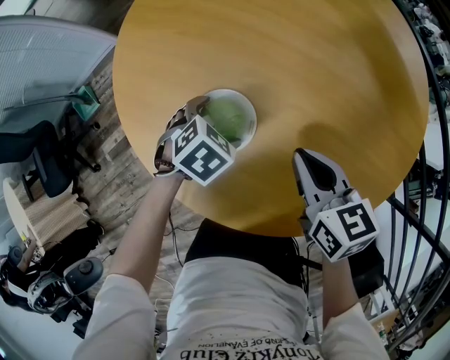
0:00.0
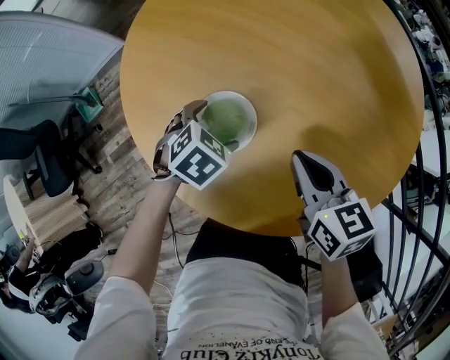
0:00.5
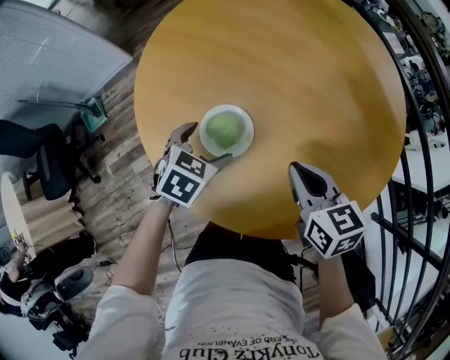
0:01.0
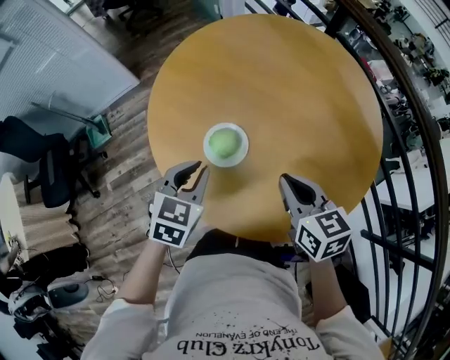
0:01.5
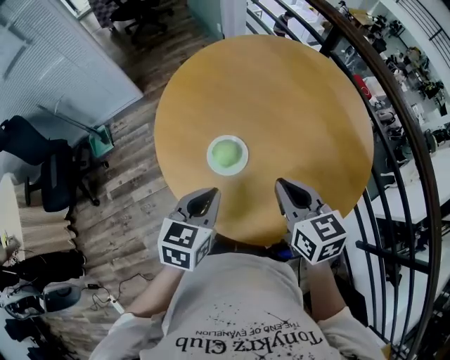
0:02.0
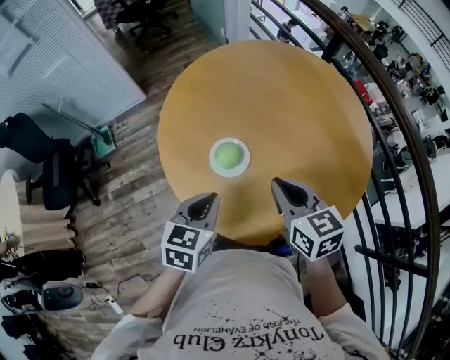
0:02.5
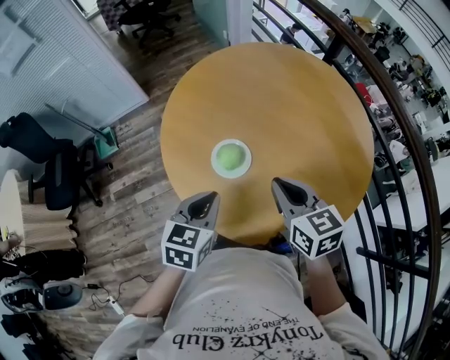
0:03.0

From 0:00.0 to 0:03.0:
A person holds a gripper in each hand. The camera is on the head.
From 0:00.0 to 0:01.5: The right gripper moves upward and backward, some 15 cm, while the left gripper goes roughly 25 cm upward and backward, tips its fingers upward by approximately 30 degrees, and closes up.
From 0:01.5 to 0:03.0: The right gripper goes some 5 cm upward. The left gripper shifts some 10 cm backward.

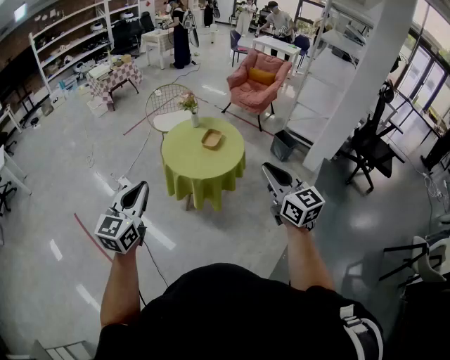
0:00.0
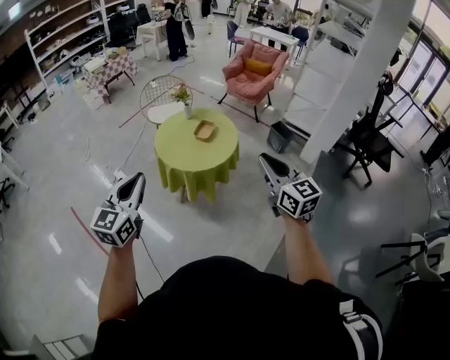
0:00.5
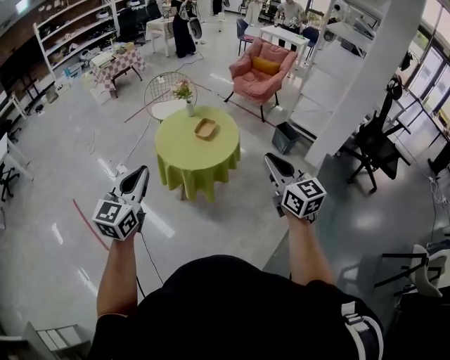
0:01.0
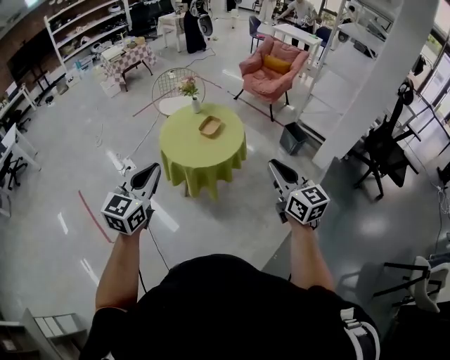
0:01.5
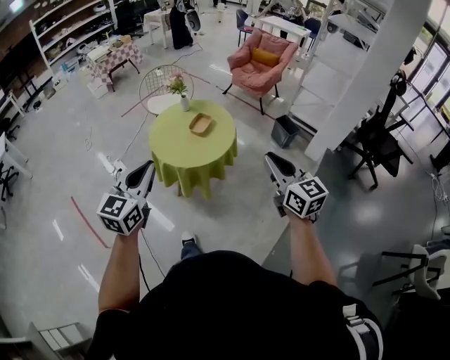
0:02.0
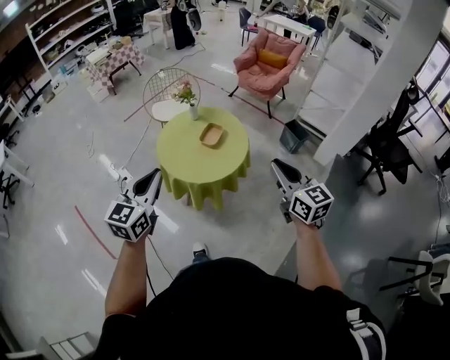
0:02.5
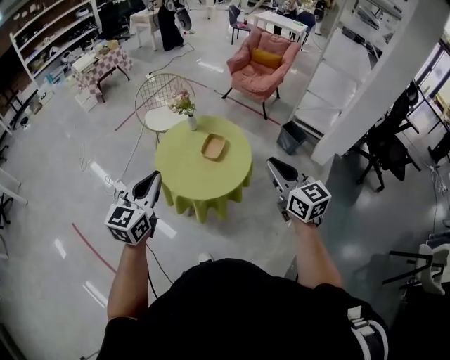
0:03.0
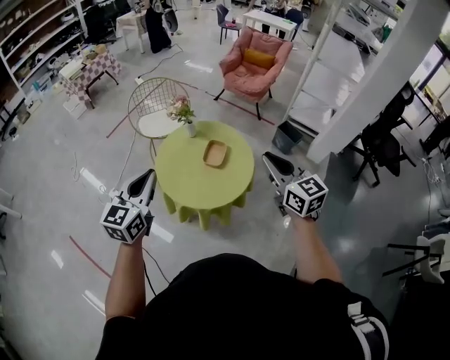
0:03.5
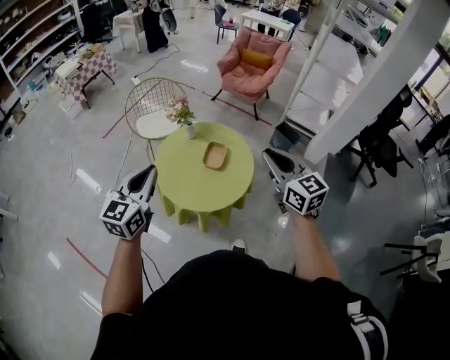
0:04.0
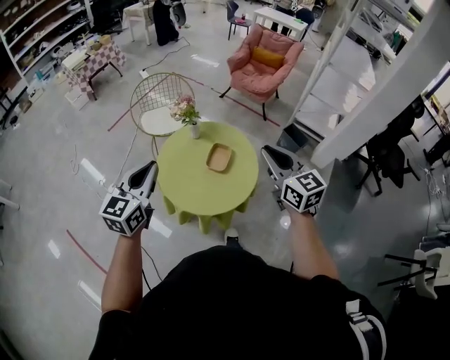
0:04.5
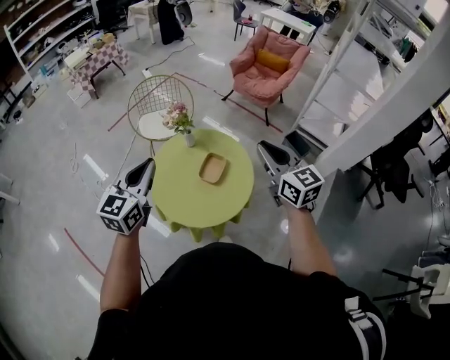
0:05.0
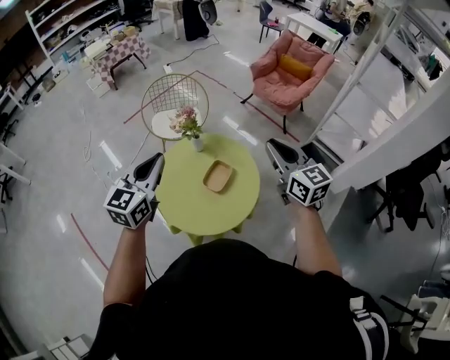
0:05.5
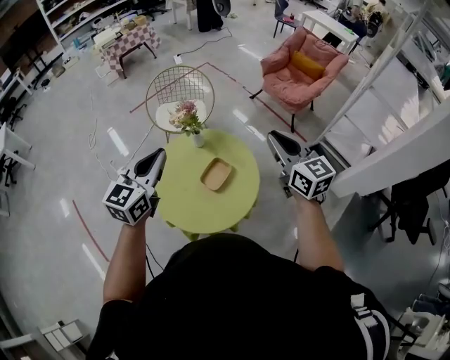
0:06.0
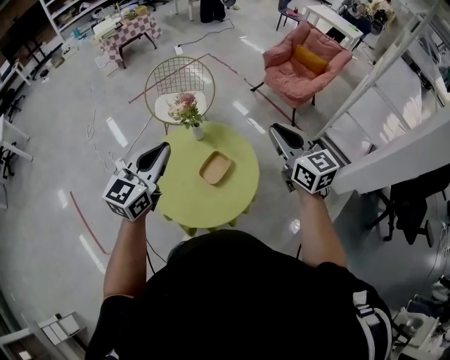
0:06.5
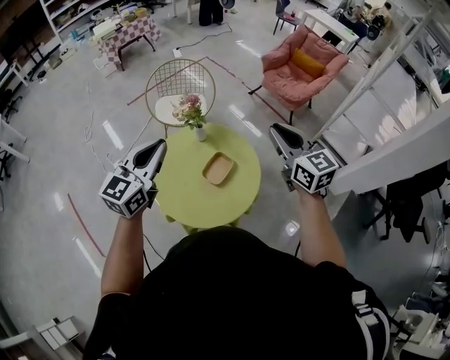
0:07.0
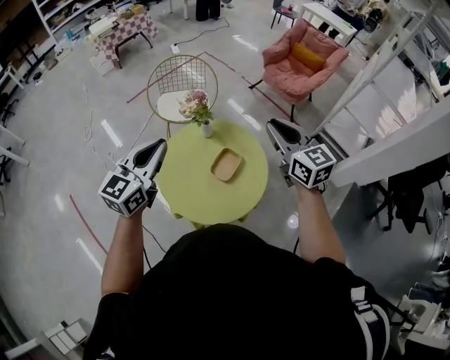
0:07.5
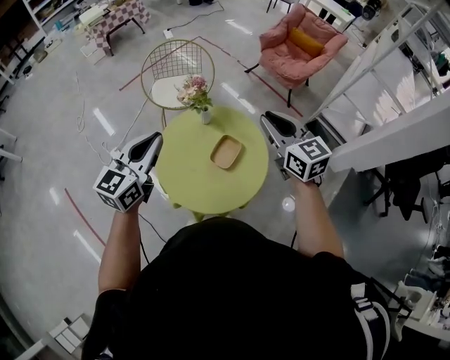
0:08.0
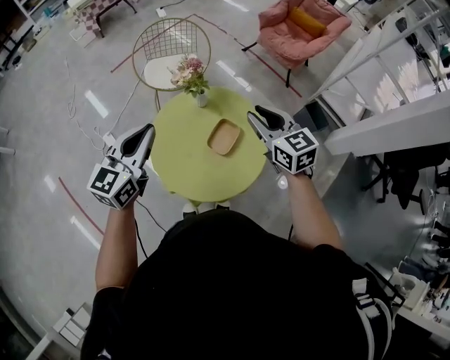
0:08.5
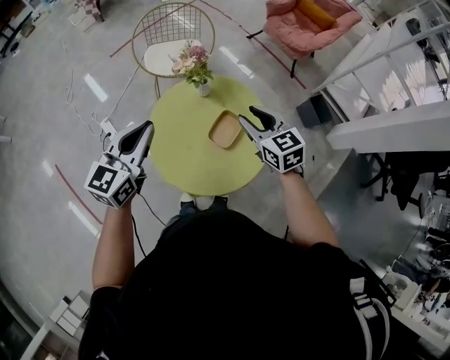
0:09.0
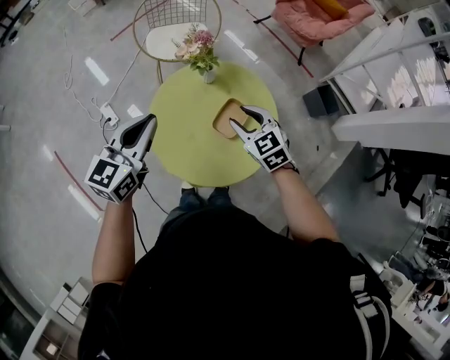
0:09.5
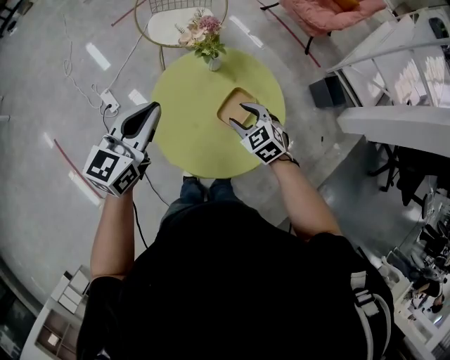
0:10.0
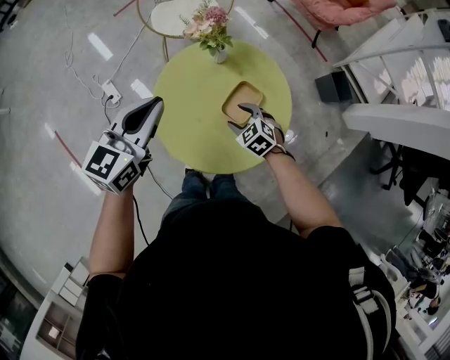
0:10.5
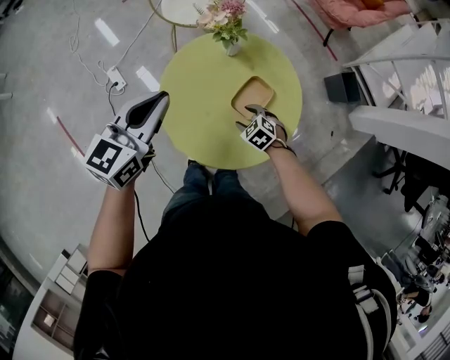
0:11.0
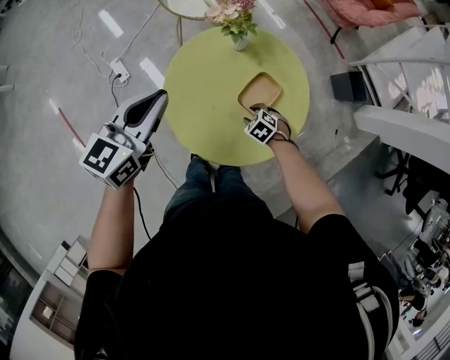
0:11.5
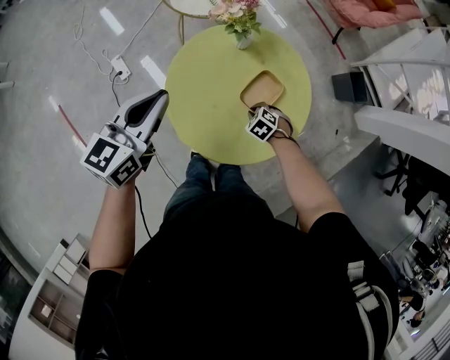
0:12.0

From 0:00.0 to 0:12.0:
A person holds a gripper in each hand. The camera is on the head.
From 0:00.0 to 0:02.0: The two grippers go about 15 cm to the right and forward.
From 0:02.0 to 0:04.0: Both grippers move forward and to the left, some 35 cm.
From 0:04.0 to 0:06.0: The grippers both shift forward and to the right by roughly 25 cm.
From 0:06.0 to 0:08.0: The grippers both shift to the left by about 10 cm.
From 0:08.0 to 0:10.0: The left gripper heads downward and forward, covering about 10 cm. Meanwhile the right gripper moves downward, approximately 30 cm, tilts its fingers approximately 30 degrees downward, and opens its fingers.
From 0:10.0 to 0:12.0: The right gripper goes about 20 cm downward, swivels approximately 30 degrees, and closes up. Meanwhile the left gripper changes place by some 5 cm.

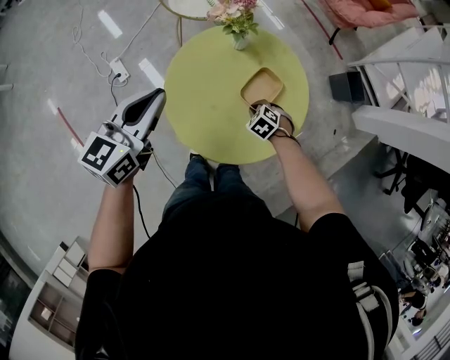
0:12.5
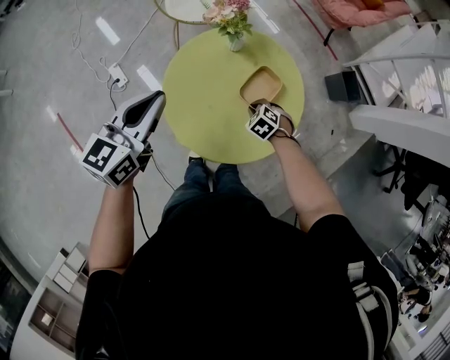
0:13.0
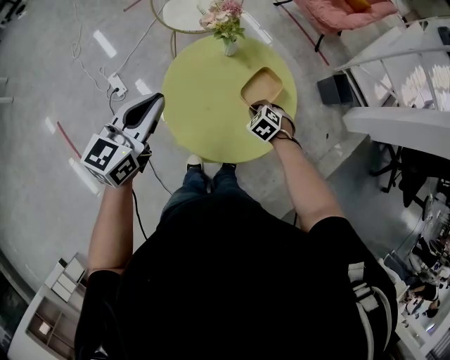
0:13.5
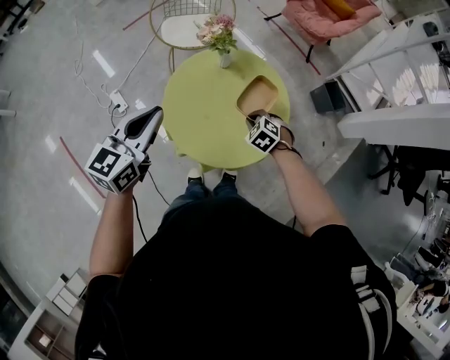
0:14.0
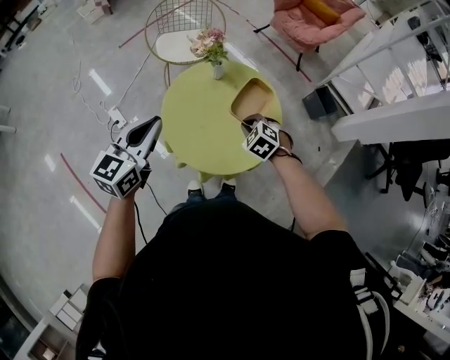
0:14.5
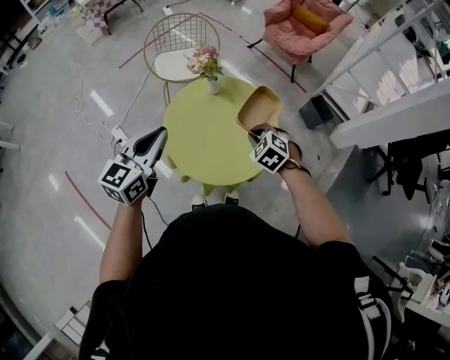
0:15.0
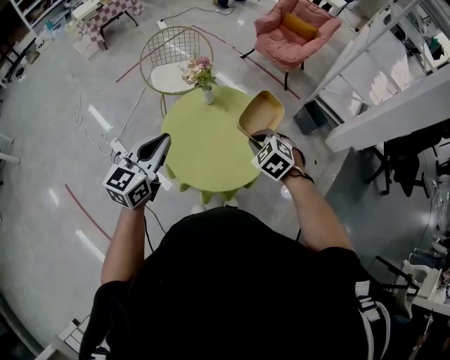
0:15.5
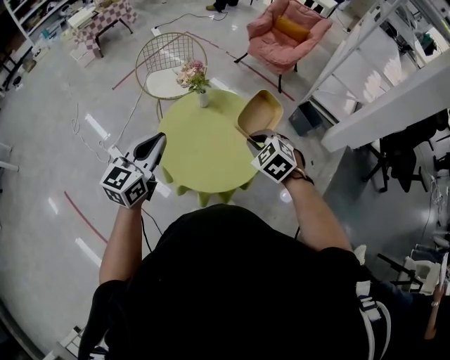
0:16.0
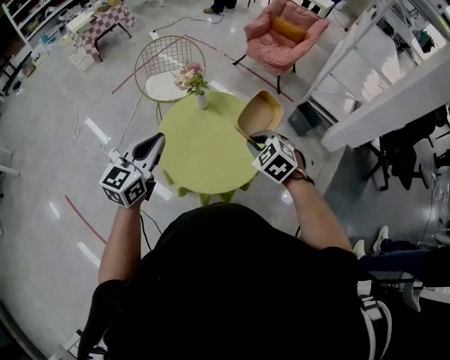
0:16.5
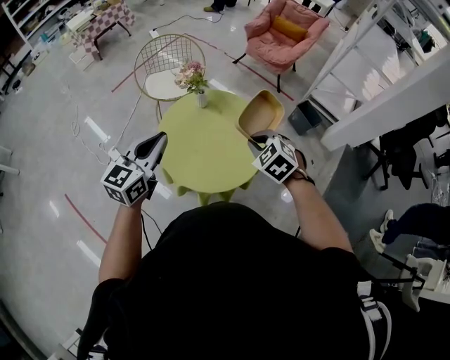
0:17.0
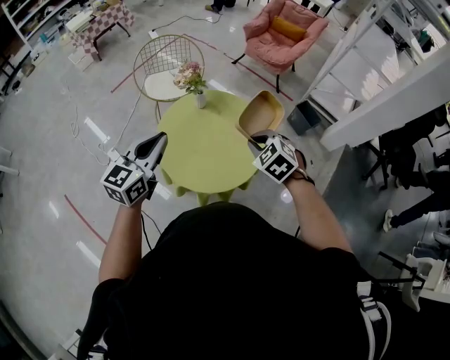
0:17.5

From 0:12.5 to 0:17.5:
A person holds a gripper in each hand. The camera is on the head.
From 0:12.5 to 0:15.0: The right gripper shifts about 25 cm upward; the left gripper shifts by about 15 cm.
From 0:15.0 to 0:17.5: The right gripper moves upward, roughly 10 cm.

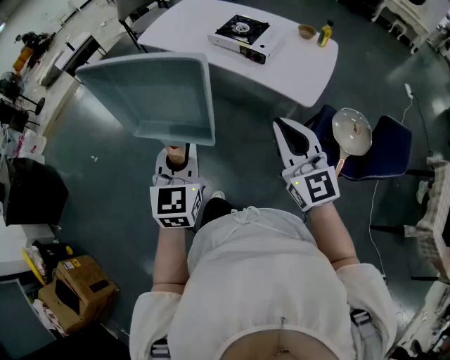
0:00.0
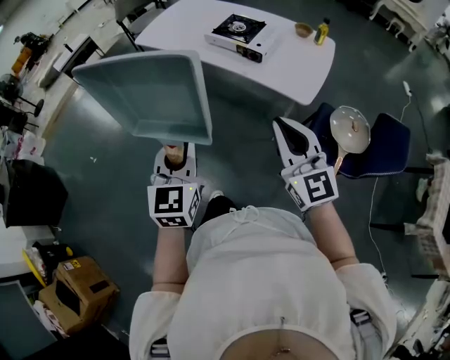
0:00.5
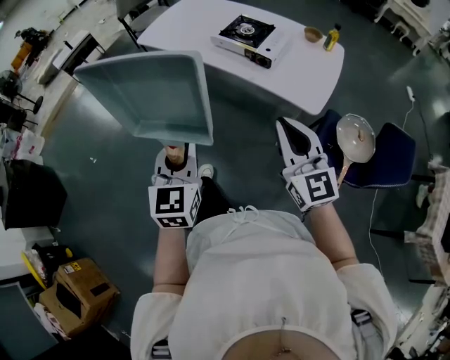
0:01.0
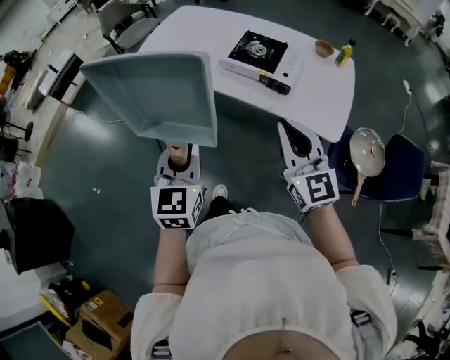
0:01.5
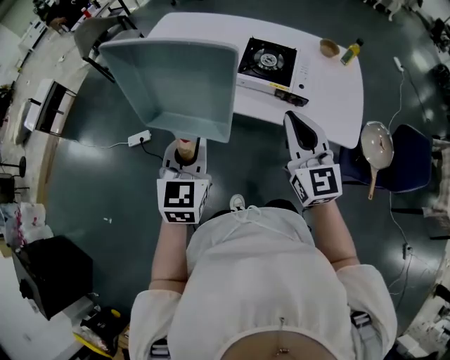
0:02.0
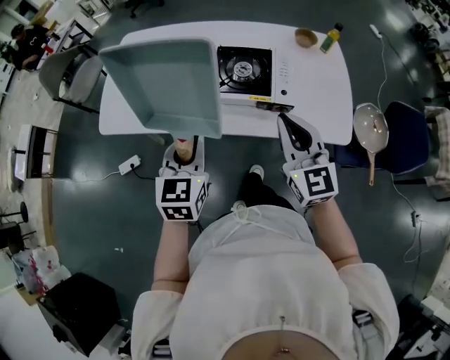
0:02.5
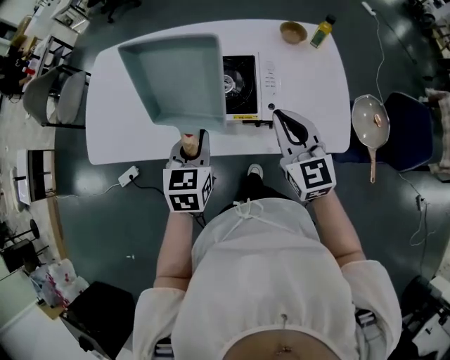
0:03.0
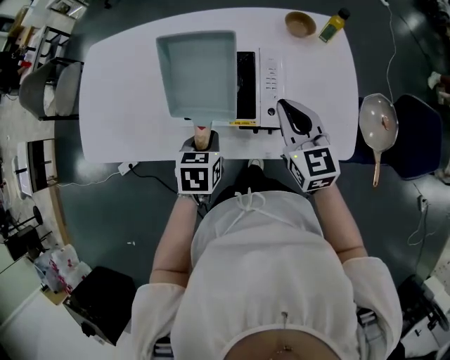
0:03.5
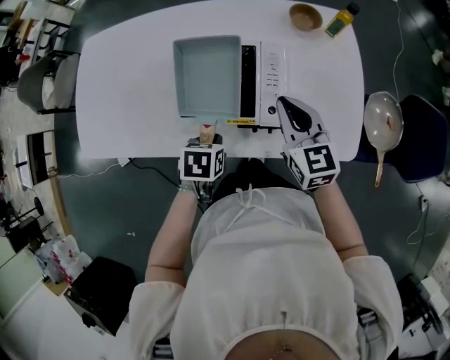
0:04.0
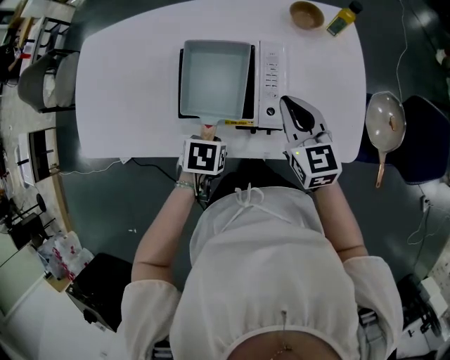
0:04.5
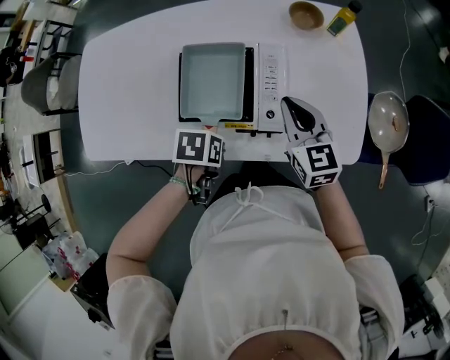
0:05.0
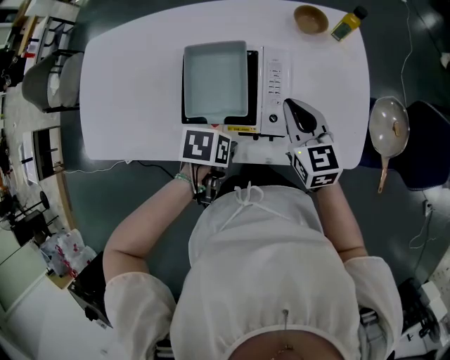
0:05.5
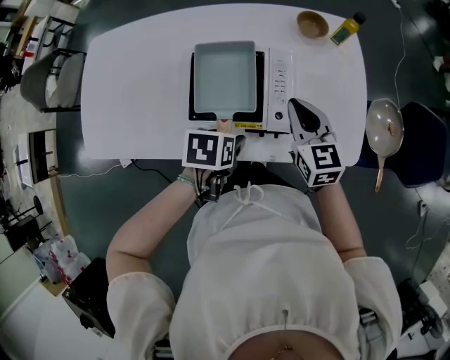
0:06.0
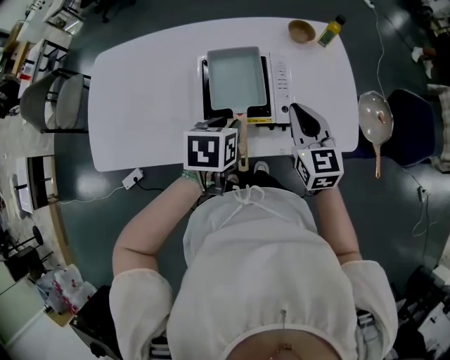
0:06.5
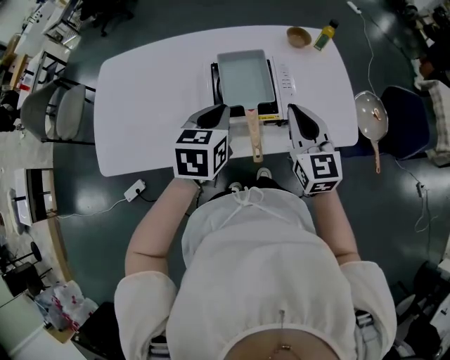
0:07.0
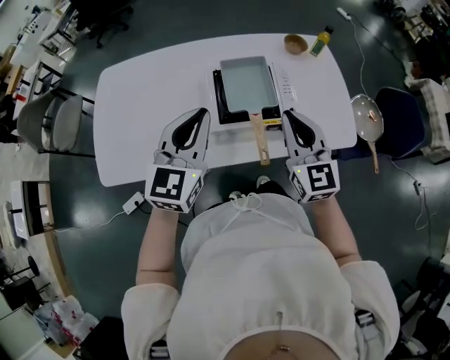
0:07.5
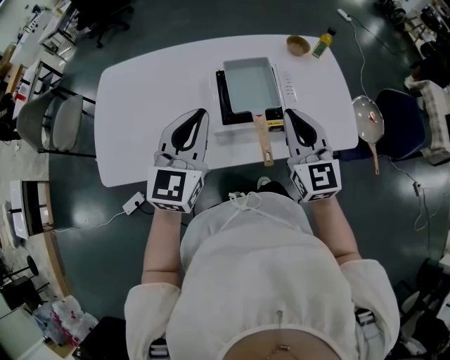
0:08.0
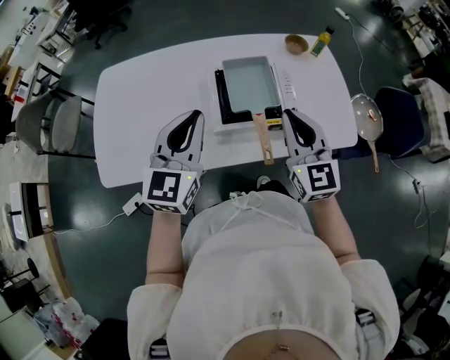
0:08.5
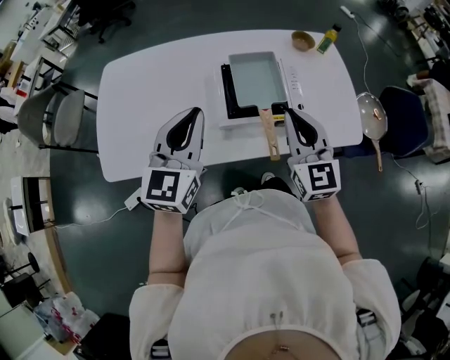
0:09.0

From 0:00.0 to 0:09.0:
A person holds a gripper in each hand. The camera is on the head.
From 0:00.0 to 0:02.0: The two grippers travel together, forward, roughly 40 cm. The right gripper changes its angle by approximately 30 degrees, while the left gripper changes its angle by about 20 degrees.
From 0:02.0 to 0:04.5: The right gripper shifts by some 35 cm, and swivels some 30 degrees, while the left gripper ends up approximately 40 cm from where it was, and tilts its fingers approximately 60 degrees downward.
From 0:04.5 to 0:07.0: The left gripper shifts about 20 cm upward, tips its fingers upward by roughly 40 degrees, and opens and closes again, while the right gripper shifts by roughly 15 cm.
From 0:07.0 to 0:09.0: The right gripper goes some 5 cm to the left. The left gripper shifts about 15 cm to the left and upward, and tips its fingers upward by some 30 degrees.
